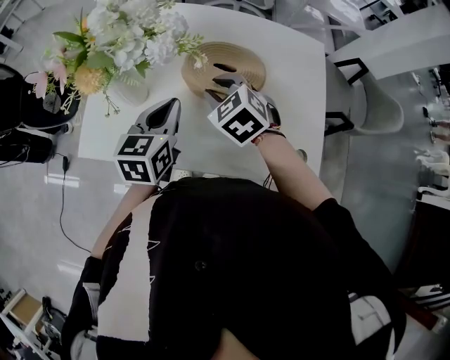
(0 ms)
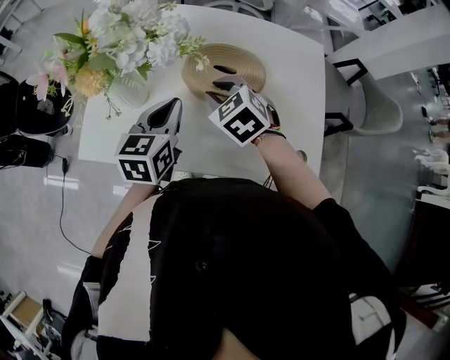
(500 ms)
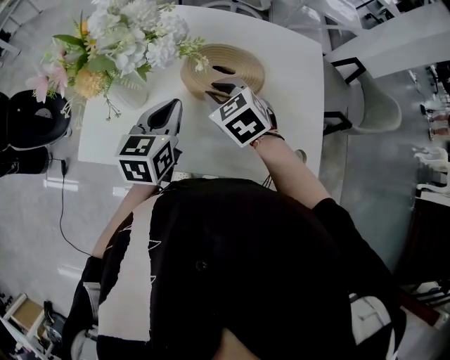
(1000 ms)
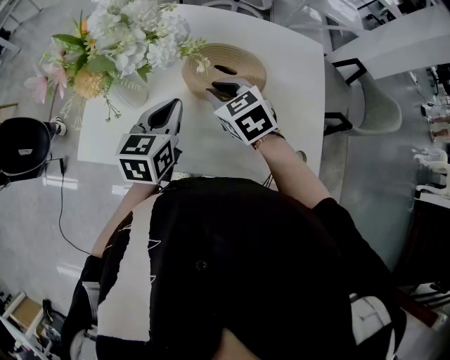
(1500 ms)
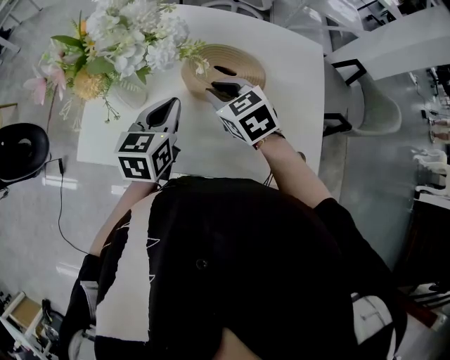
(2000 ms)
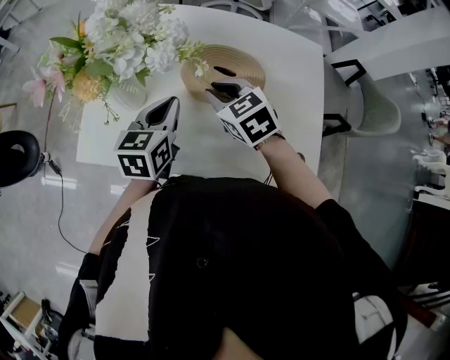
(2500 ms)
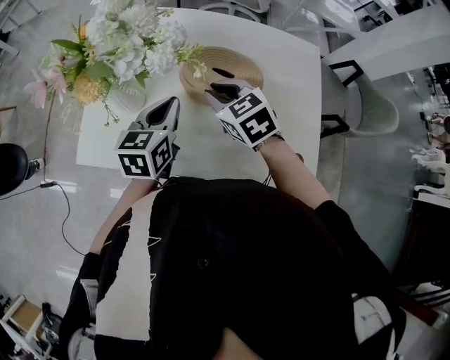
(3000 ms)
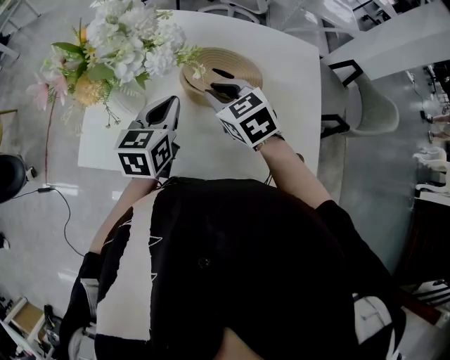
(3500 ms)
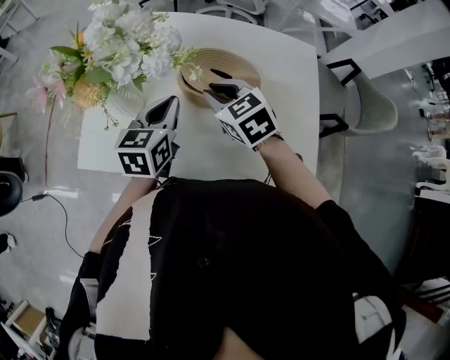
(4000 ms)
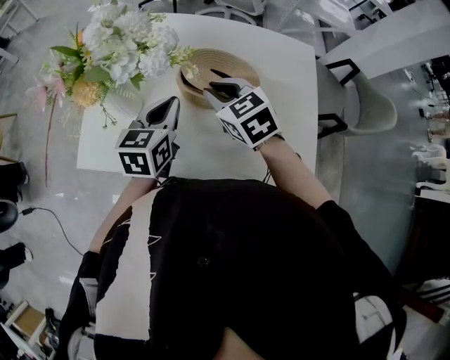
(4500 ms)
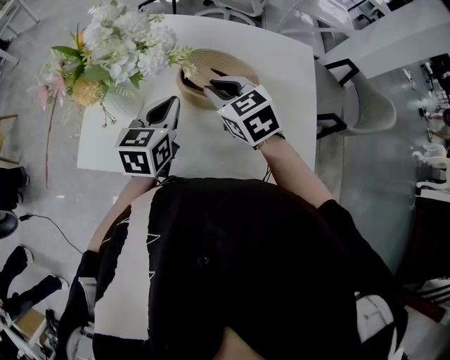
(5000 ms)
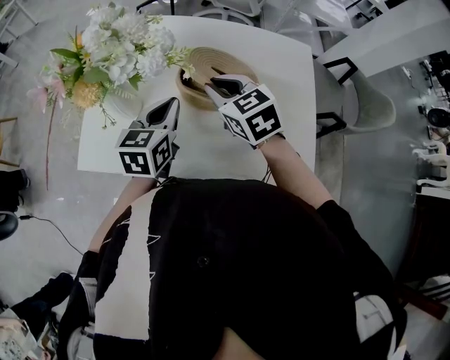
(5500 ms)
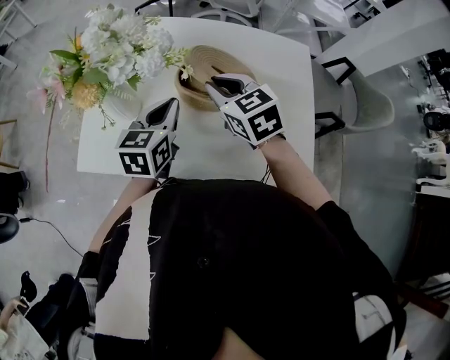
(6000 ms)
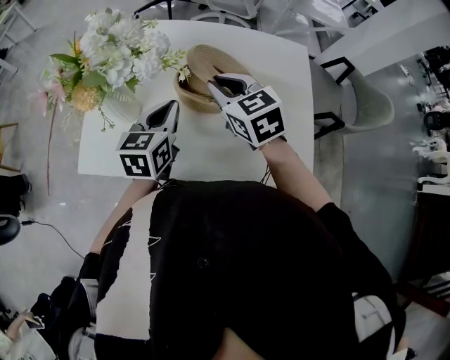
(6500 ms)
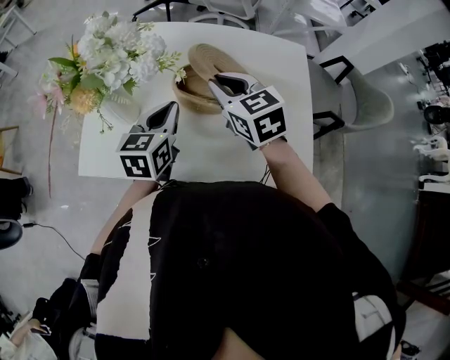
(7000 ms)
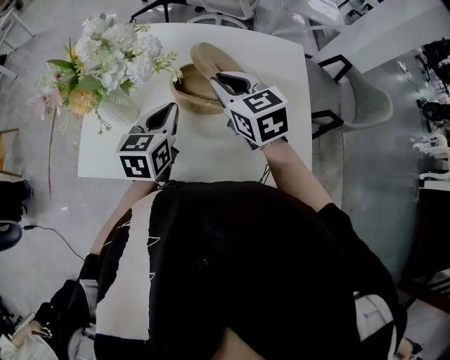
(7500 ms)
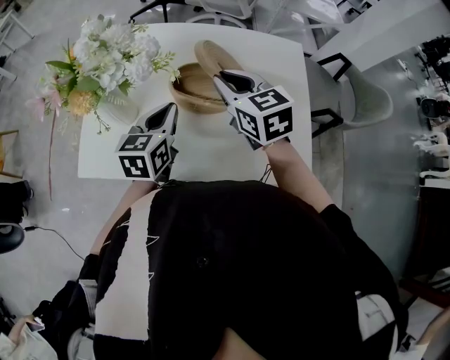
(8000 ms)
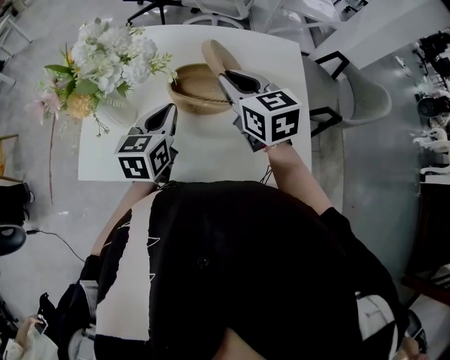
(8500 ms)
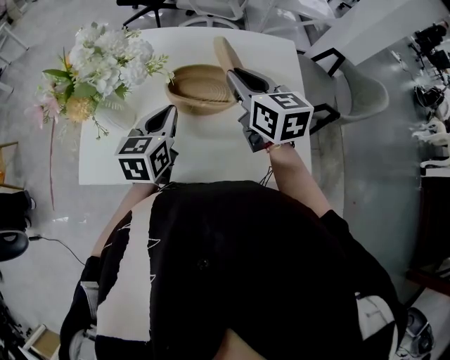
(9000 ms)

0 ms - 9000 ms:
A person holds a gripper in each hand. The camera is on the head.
0 ms - 4500 ms: The grippers stay close to where they were, moving slightly.
4500 ms - 7000 ms: The right gripper changes place by some 5 cm.
7000 ms - 9000 ms: The right gripper travels to the right by roughly 5 cm, and rotates approximately 20 degrees.

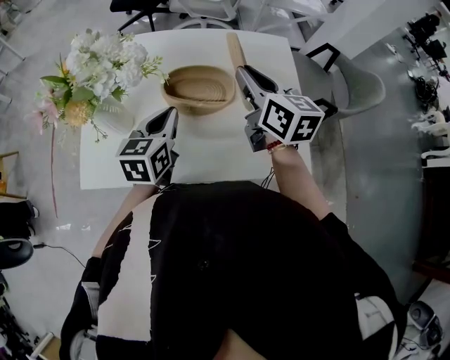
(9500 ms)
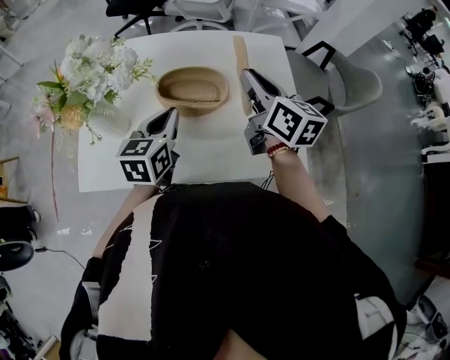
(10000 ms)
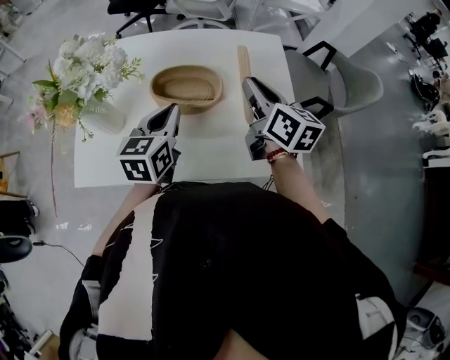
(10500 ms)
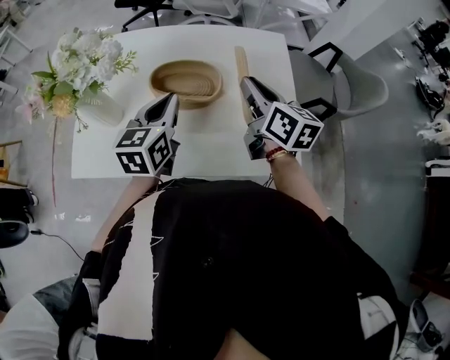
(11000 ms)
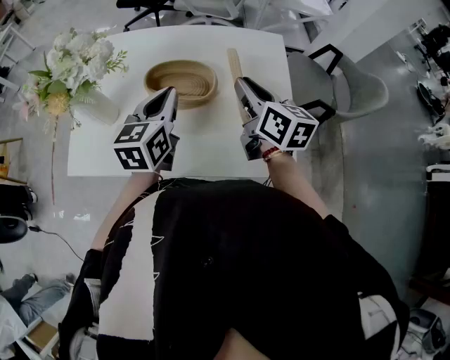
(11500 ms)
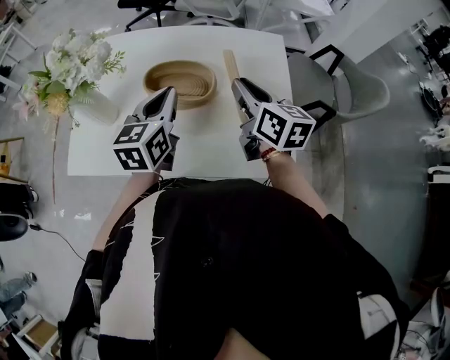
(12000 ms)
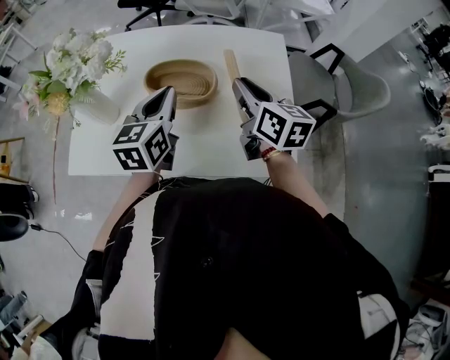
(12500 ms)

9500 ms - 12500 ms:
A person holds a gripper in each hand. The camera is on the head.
9500 ms - 11000 ms: The grippers both shift to the right by approximately 5 cm.
11000 ms - 12500 ms: The grippers stay close to where they were, moving slightly.

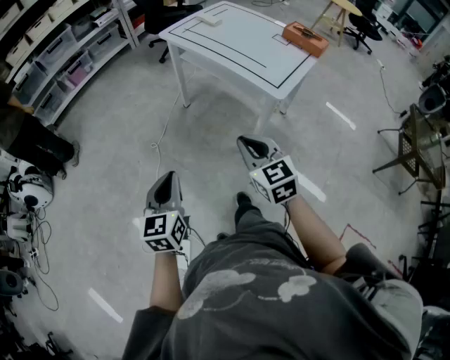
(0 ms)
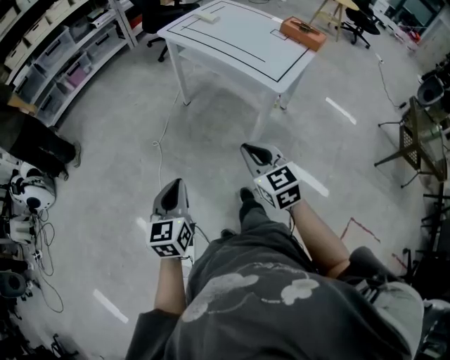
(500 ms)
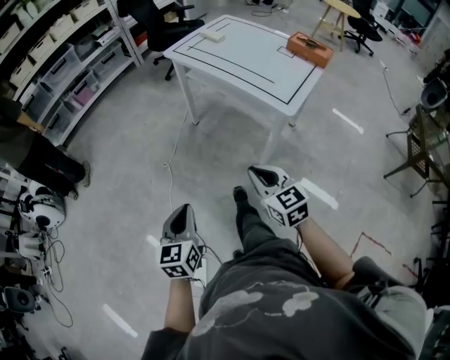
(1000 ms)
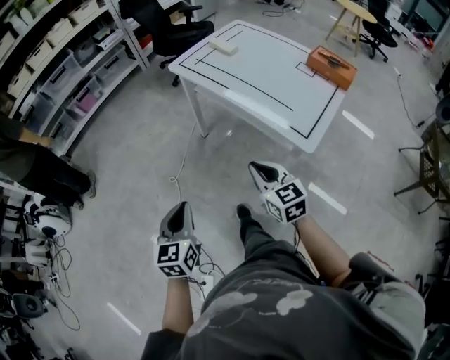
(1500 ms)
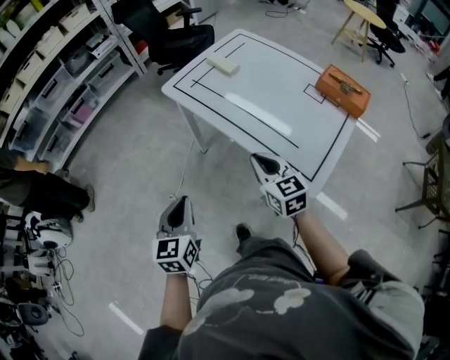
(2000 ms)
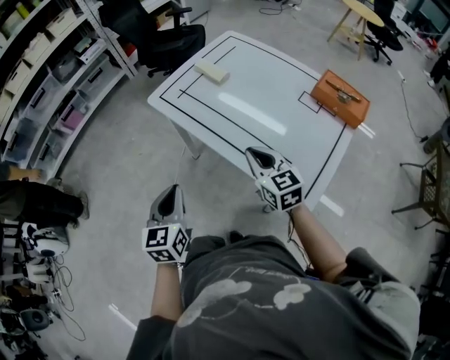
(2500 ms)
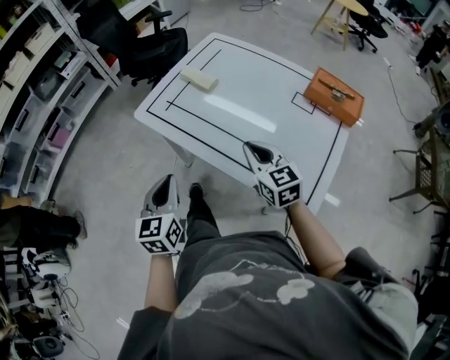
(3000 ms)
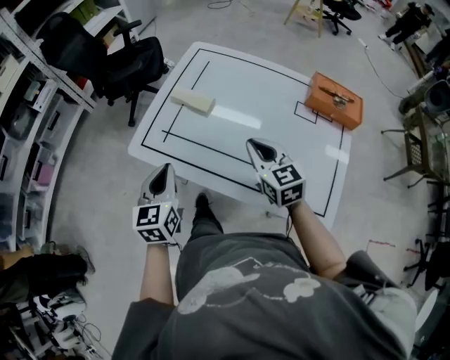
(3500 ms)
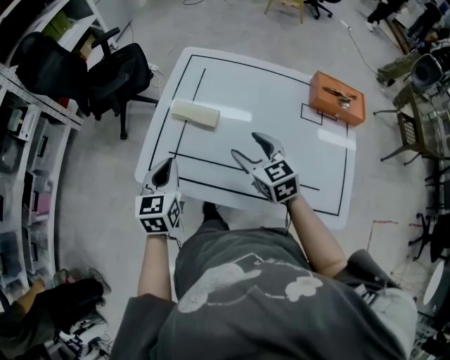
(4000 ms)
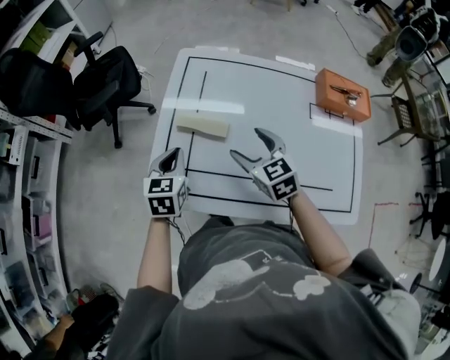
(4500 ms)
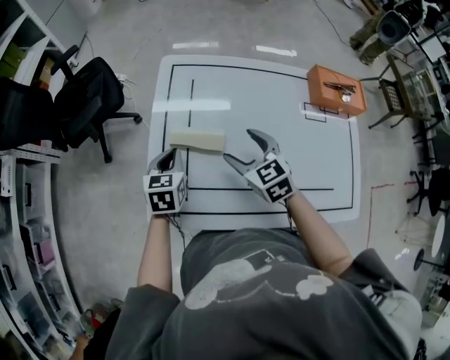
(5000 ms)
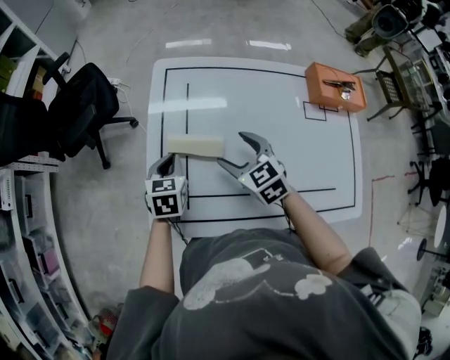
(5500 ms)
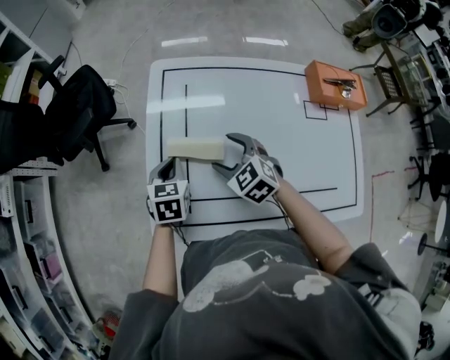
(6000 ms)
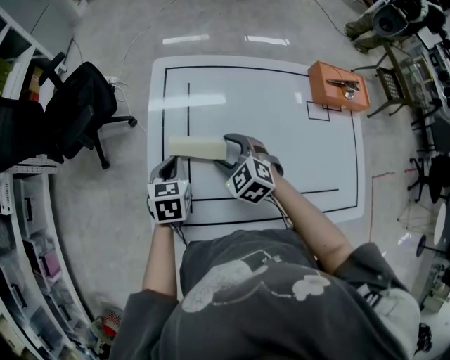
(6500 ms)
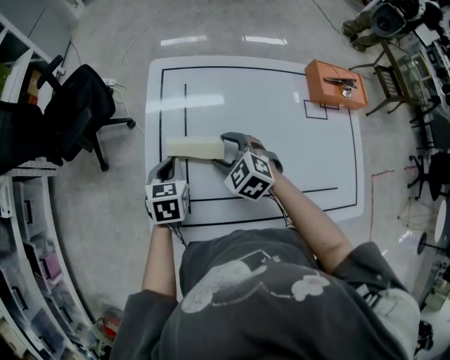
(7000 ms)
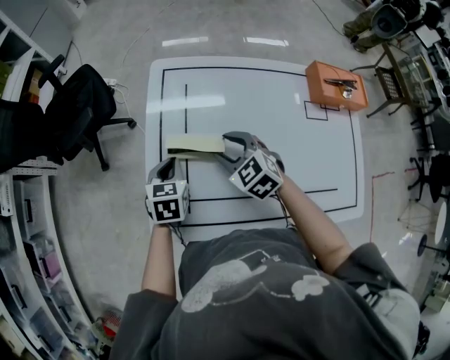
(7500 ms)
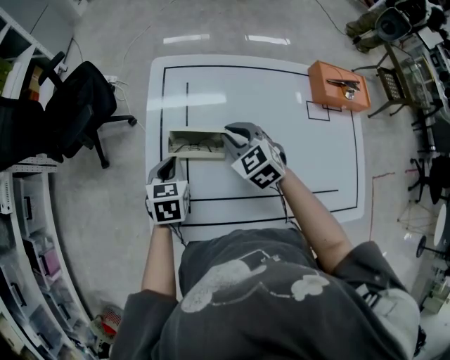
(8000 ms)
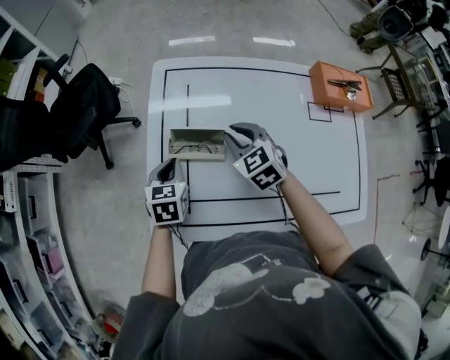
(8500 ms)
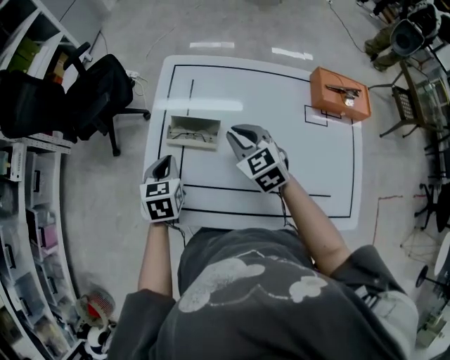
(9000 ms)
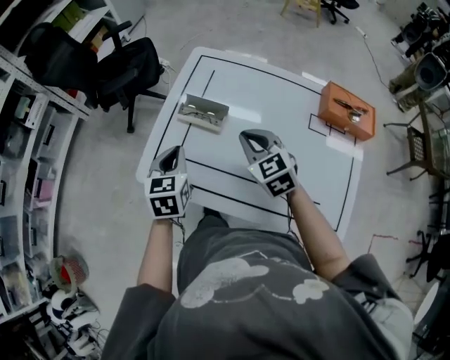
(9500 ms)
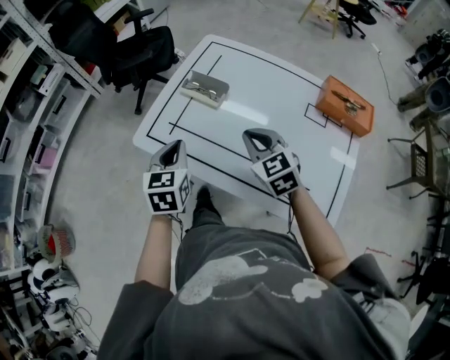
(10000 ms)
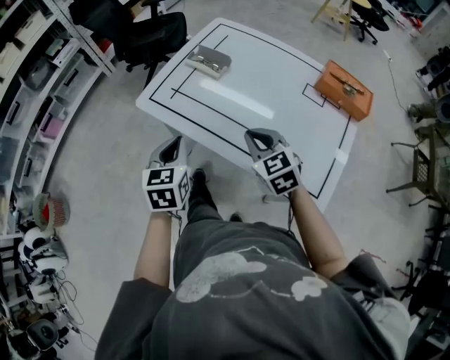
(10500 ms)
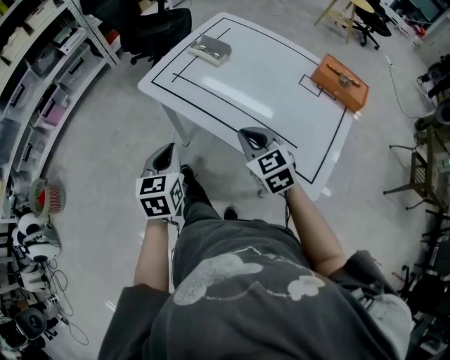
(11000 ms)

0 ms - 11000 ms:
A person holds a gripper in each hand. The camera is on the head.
0 ms - 2000 ms: The two grippers go about 35 cm forward.
2000 ms - 3500 ms: The left gripper travels forward by approximately 35 cm; the right gripper moves forward, roughly 25 cm, and rotates approximately 20 degrees.
3500 ms - 5500 ms: The right gripper heads forward, to the left and downward, covering roughly 20 cm, and opens up, while the left gripper shifts roughly 30 cm forward and downward, and rotates roughly 30 degrees.
5500 ms - 7500 ms: The right gripper closes its fingers.
7500 ms - 9000 ms: The right gripper shifts roughly 5 cm upward, and closes its fingers. Meanwhile the left gripper moves about 5 cm.
9000 ms - 11000 ms: The left gripper changes place by about 40 cm, and swivels some 30 degrees; the right gripper ends up some 35 cm from where it was, and turns by approximately 30 degrees.

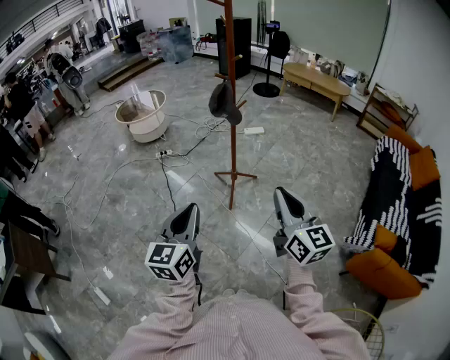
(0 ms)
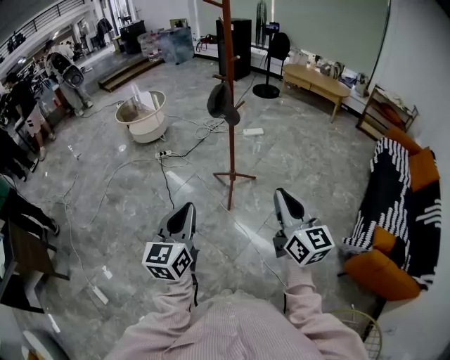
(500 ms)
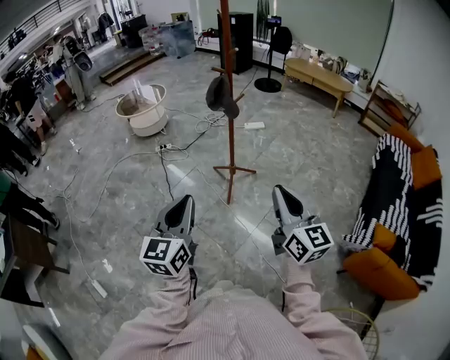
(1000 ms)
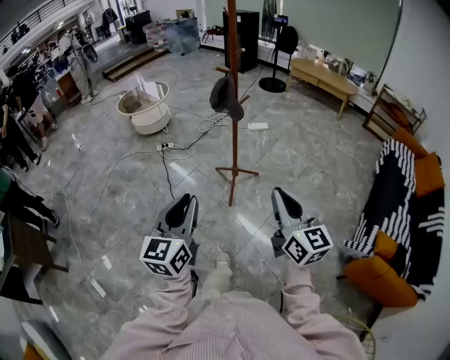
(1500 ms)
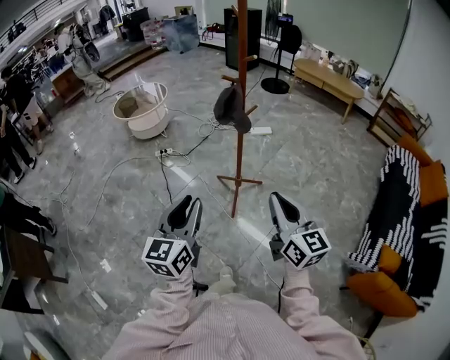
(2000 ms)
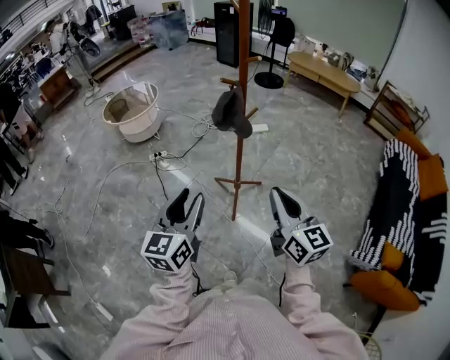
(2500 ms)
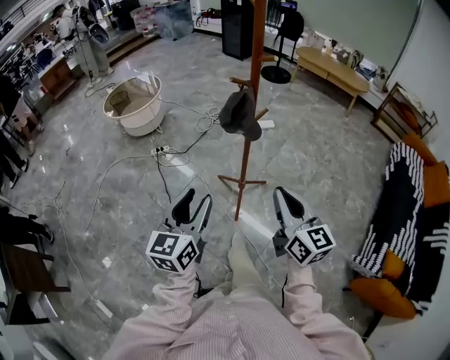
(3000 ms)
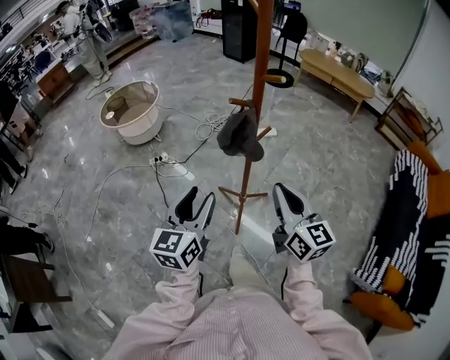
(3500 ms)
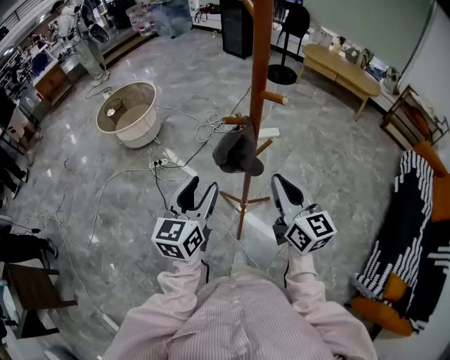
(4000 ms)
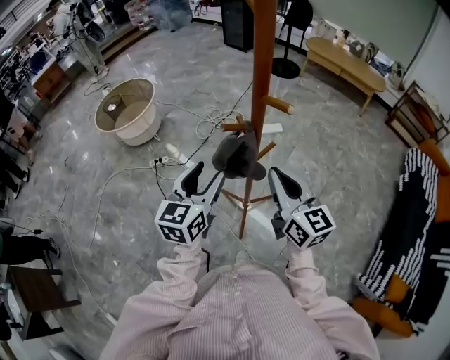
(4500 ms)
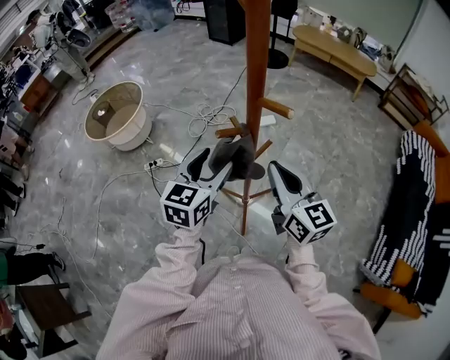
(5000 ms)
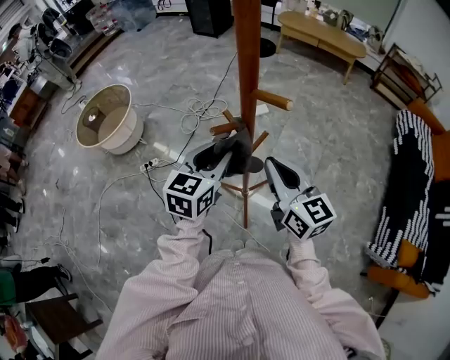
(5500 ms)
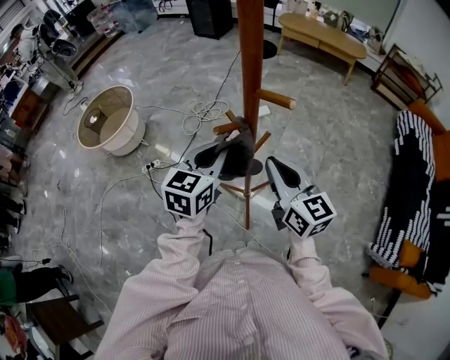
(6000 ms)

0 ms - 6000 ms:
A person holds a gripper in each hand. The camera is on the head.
0 ms - 2000 ms: The grippers both shift forward by about 15 cm.
2000 ms - 4000 ms: Both grippers move forward, roughly 35 cm. The left gripper opens its fingers.
4000 ms - 6000 ms: The left gripper goes some 15 cm forward, turns by about 20 degrees, and closes up, while the right gripper travels forward by about 5 cm.
